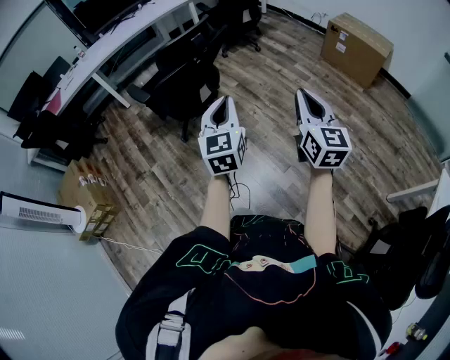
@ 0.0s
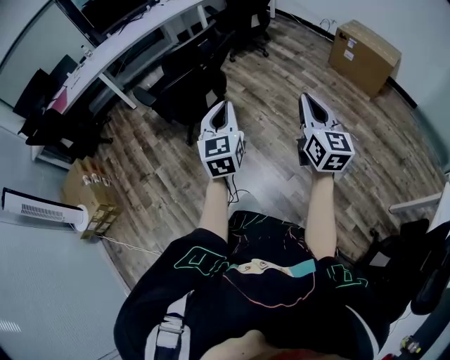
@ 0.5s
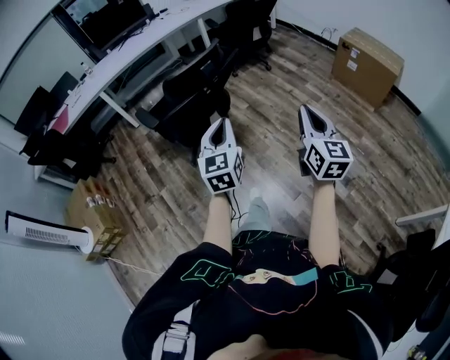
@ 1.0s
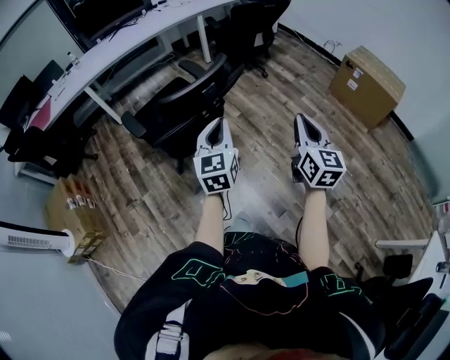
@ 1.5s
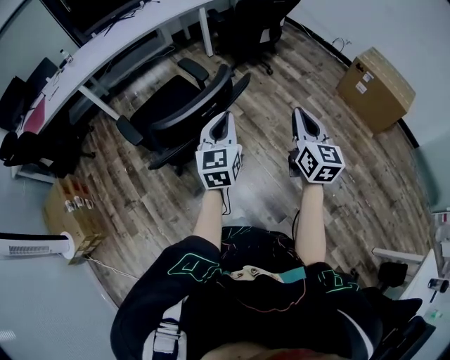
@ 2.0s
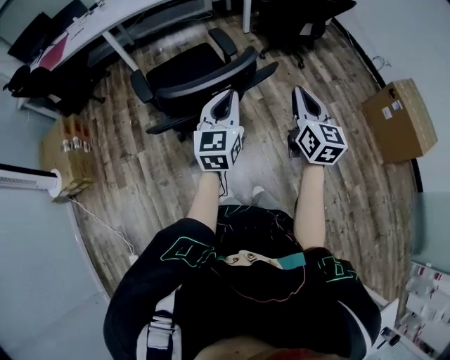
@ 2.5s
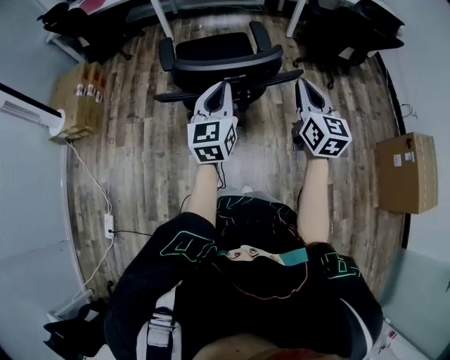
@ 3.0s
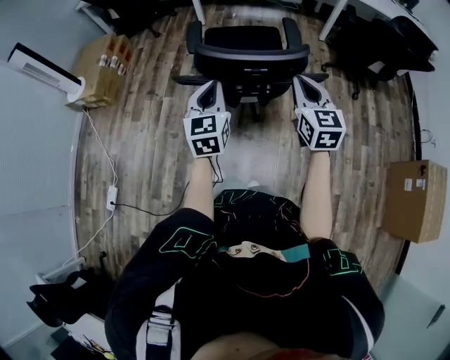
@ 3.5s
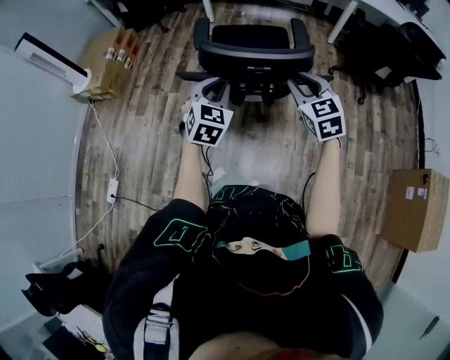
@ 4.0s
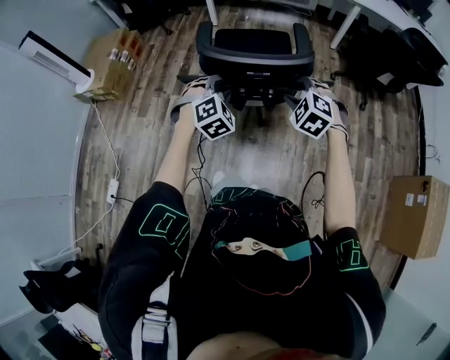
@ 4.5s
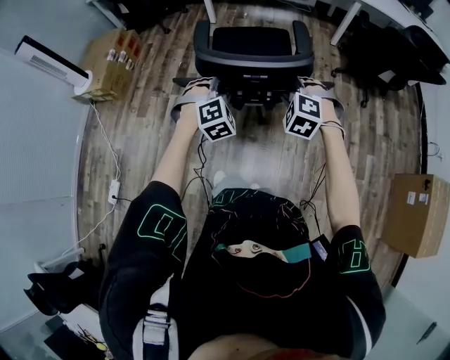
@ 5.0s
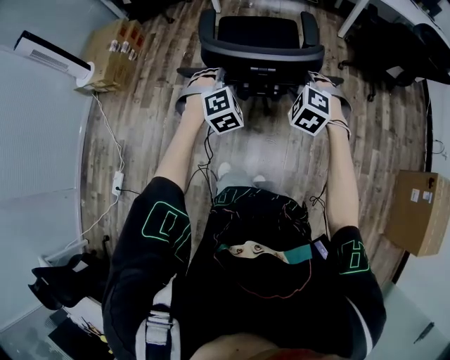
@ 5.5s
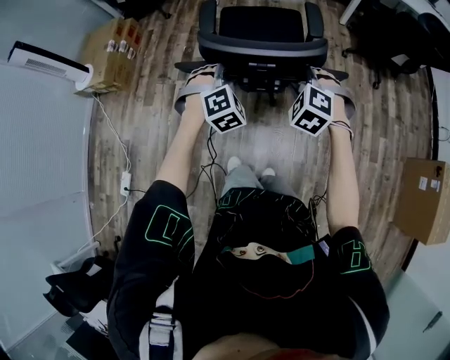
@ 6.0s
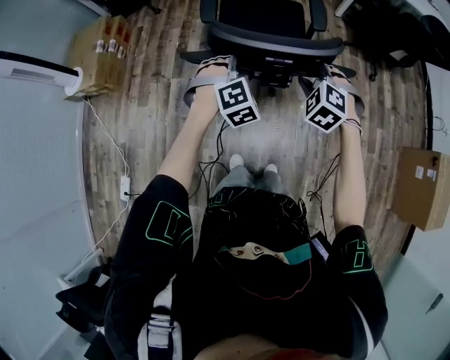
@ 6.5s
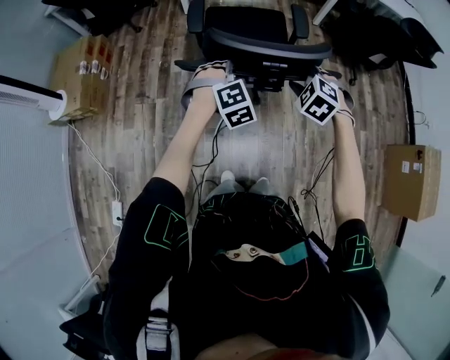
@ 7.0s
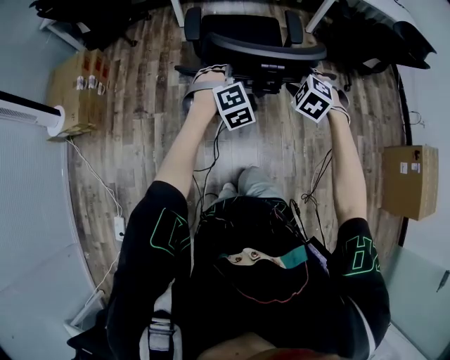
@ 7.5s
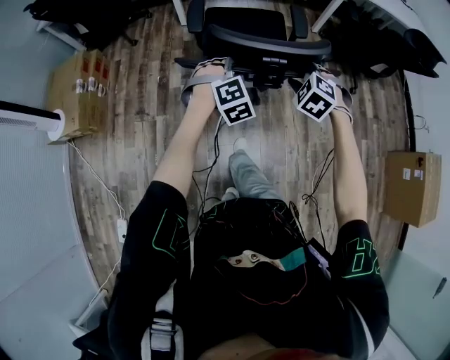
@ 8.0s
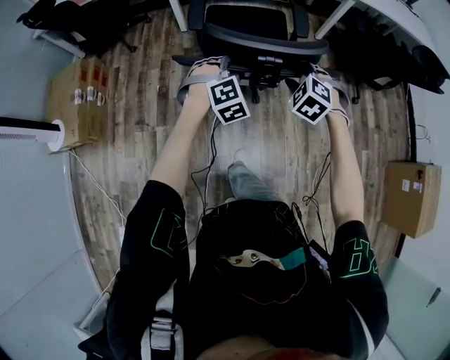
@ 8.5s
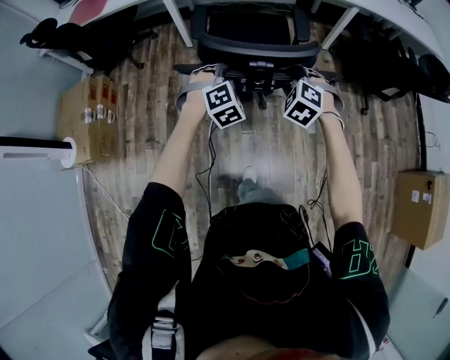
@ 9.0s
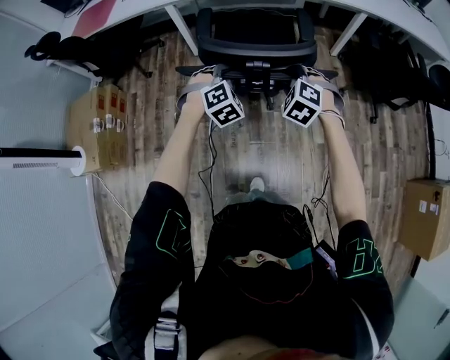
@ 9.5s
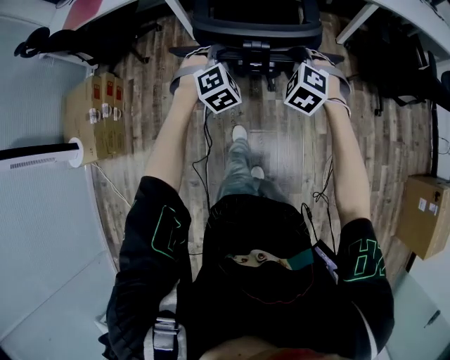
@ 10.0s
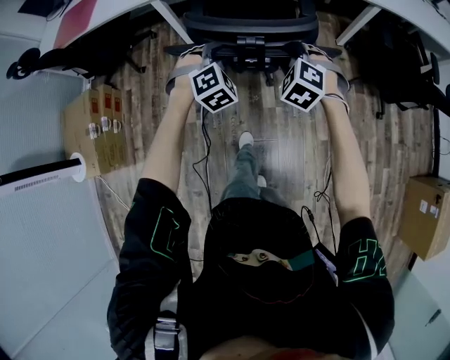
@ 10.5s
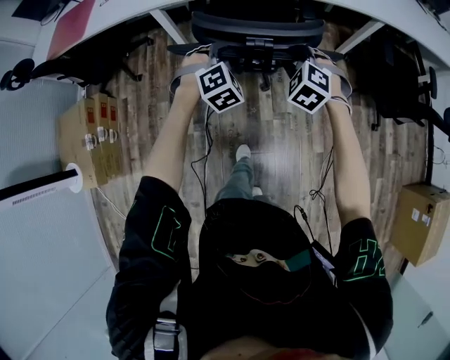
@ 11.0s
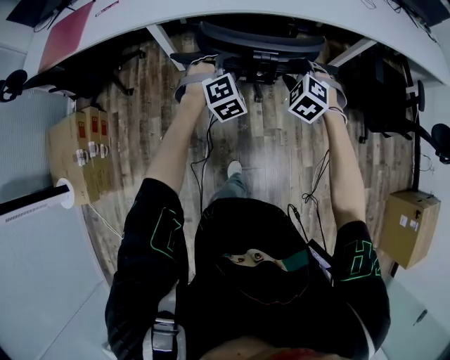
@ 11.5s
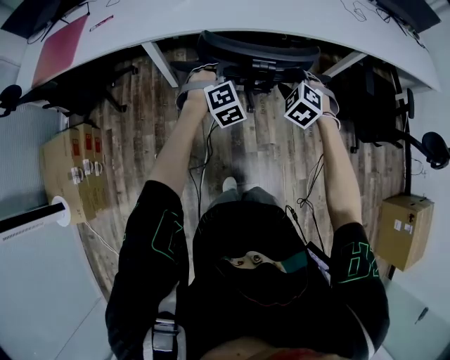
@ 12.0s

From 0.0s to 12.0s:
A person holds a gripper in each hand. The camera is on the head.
From 0.0s to 2.0s: The two grippers go roughly 40 cm forward.
From 2.0s to 4.0s: The left gripper moves about 15 cm, and swivels about 50 degrees. Meanwhile the right gripper changes place by approximately 25 cm, rotates about 70 degrees, and opens.
From 4.0s to 6.0s: The left gripper goes some 10 cm downward and forward, and twists approximately 40 degrees clockwise, seen from behind; the right gripper goes about 10 cm downward and to the left, and swivels about 50 degrees.
From 6.0s to 8.0s: The two grippers go about 20 cm forward.
From 8.0s to 10.0s: Both grippers move forward, approximately 30 cm.
From 10.0s to 12.0s: Both grippers travel together forward, some 30 cm.

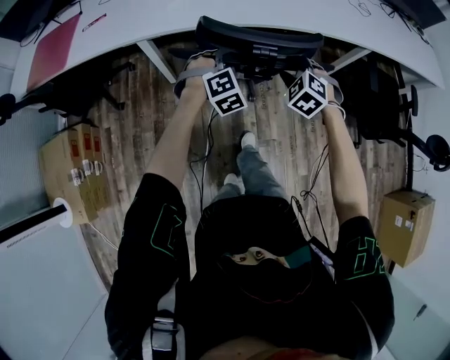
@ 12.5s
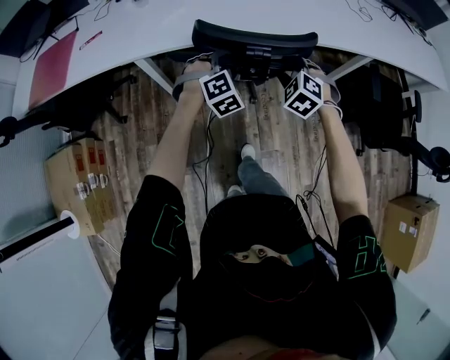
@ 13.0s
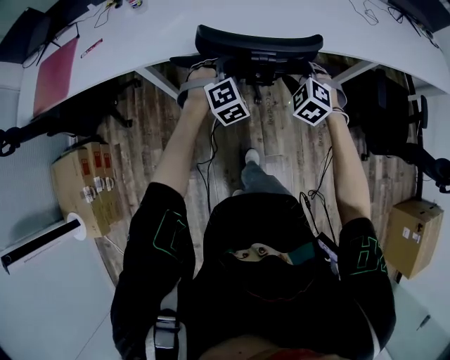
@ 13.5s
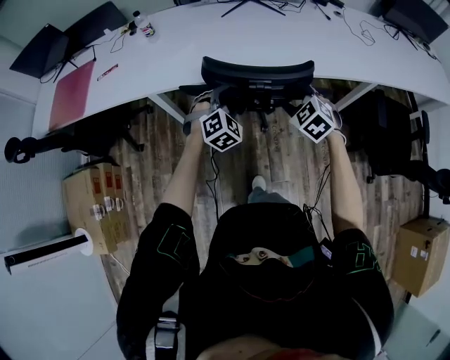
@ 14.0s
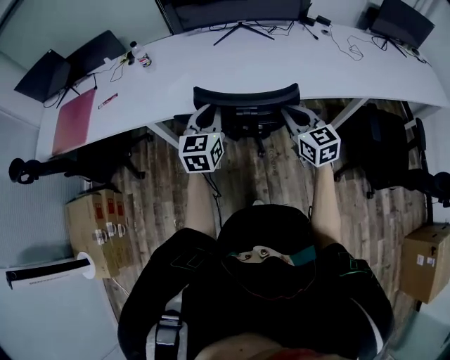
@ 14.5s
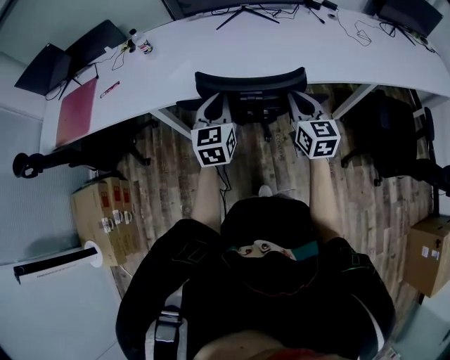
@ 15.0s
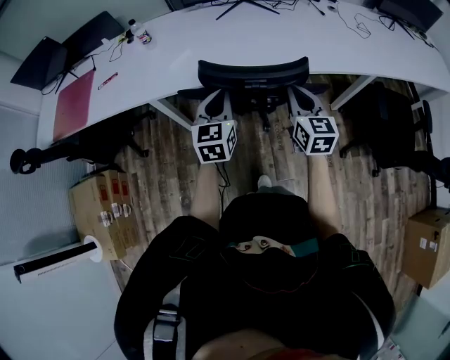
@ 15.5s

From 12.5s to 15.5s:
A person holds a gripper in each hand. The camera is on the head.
From 12.5s to 14.0s: The two grippers go about 10 cm forward.
From 14.0s to 15.5s: Both grippers move upward, roughly 10 cm. The left gripper rolls counterclockwise, seen from behind, by roughly 50 degrees, and closes its fingers; the right gripper angles its fingers upward, by approximately 30 degrees, and closes its fingers.

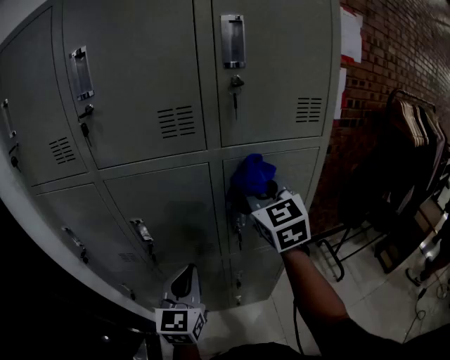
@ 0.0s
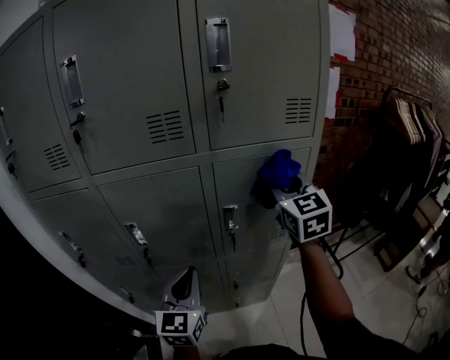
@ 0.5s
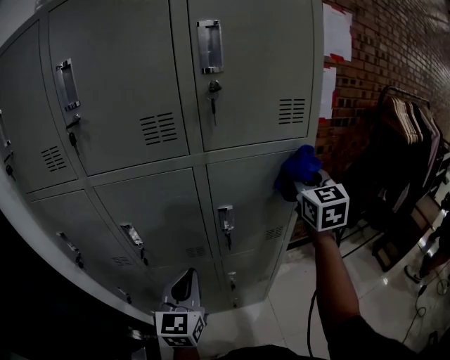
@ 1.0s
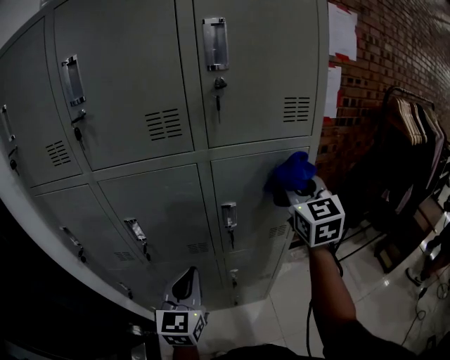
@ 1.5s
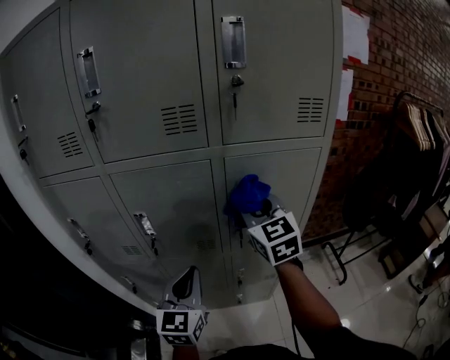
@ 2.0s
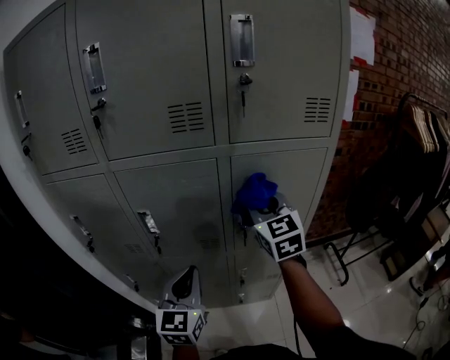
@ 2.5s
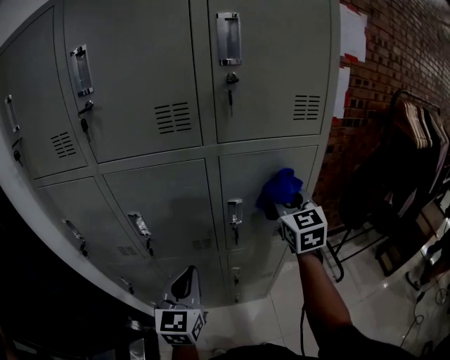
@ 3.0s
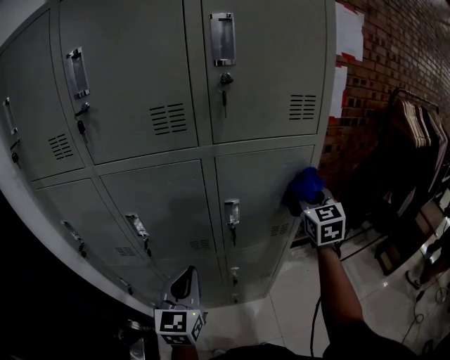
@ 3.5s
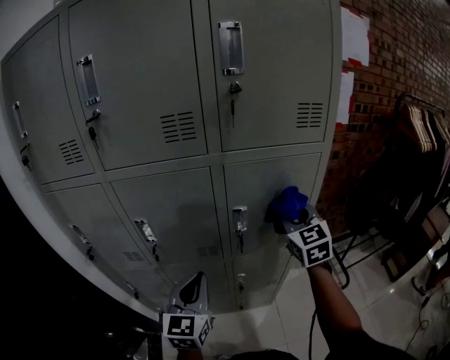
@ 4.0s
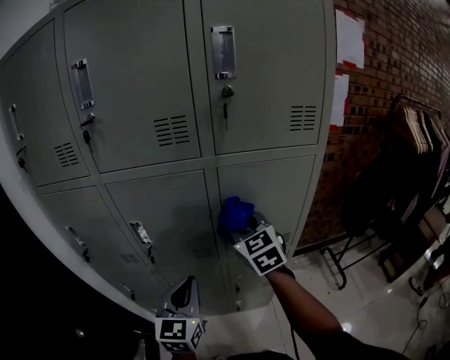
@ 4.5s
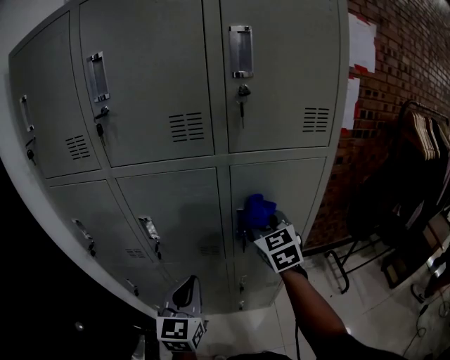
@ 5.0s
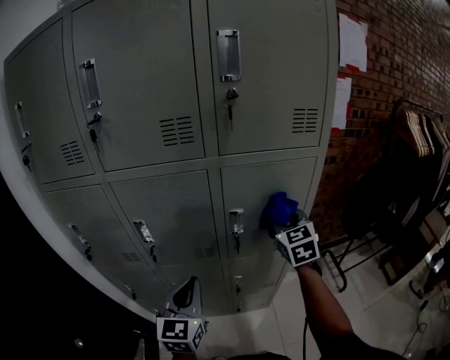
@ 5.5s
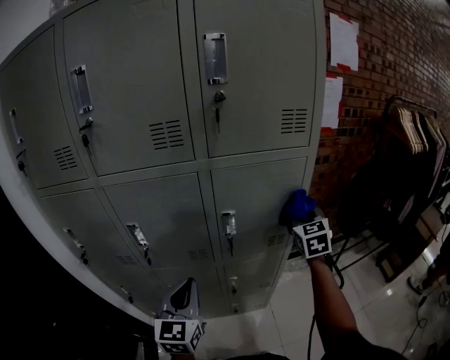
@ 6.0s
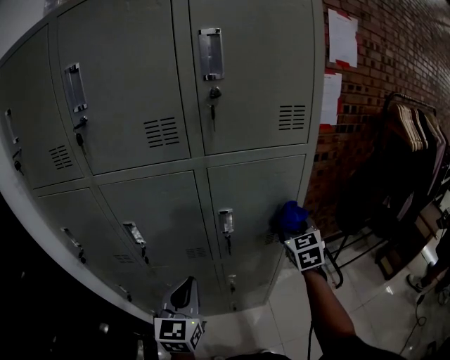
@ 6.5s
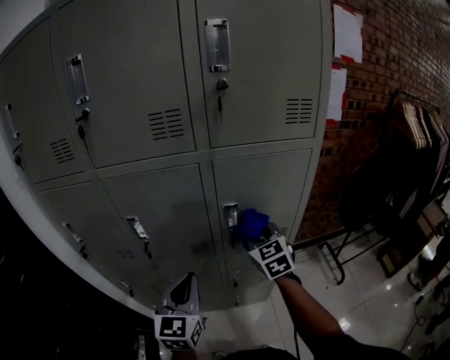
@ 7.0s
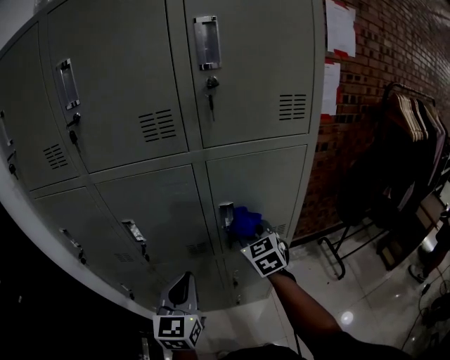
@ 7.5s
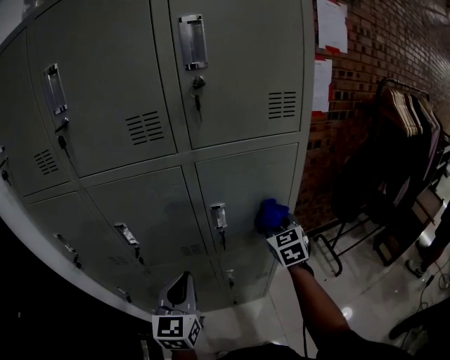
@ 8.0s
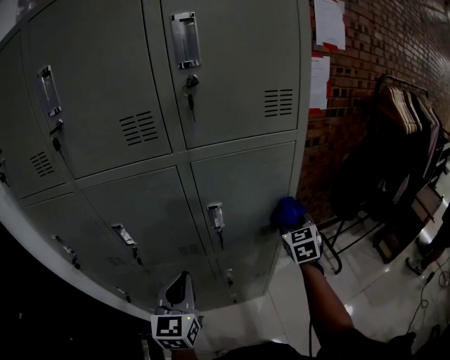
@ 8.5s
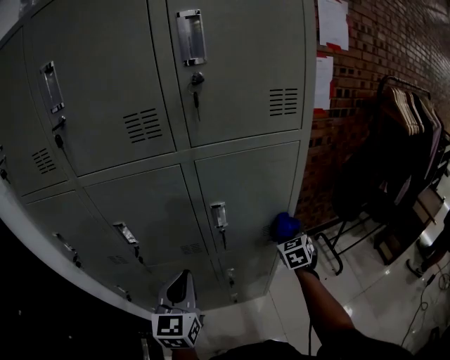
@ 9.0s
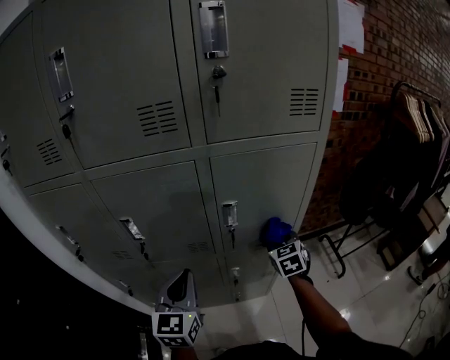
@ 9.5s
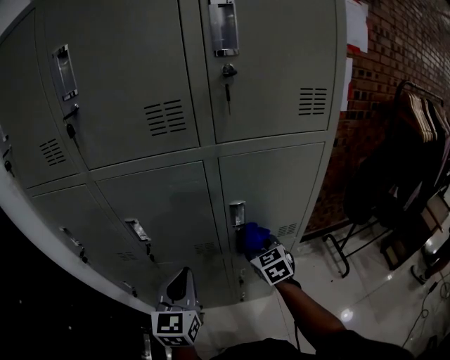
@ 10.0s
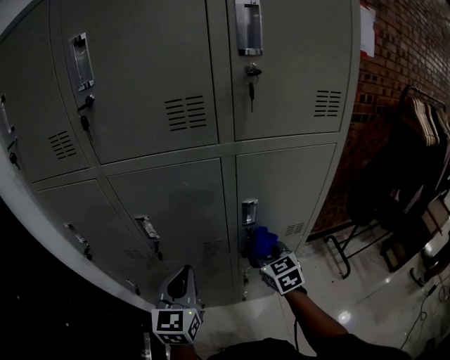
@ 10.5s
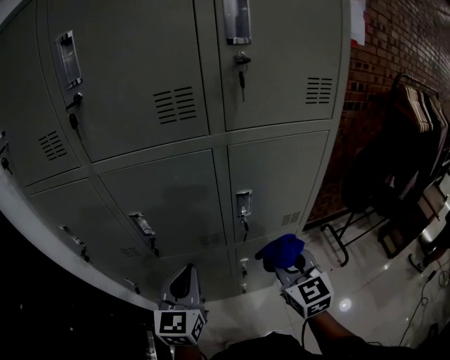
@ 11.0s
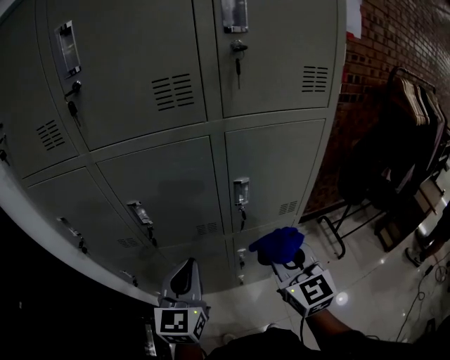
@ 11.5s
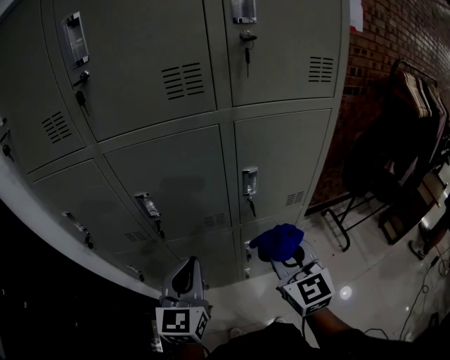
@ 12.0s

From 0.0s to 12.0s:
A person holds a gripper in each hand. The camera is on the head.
From 0.0s to 2.0s: The right gripper shifts about 5 cm downward, and goes to the right and returns, approximately 20 cm each way.
From 2.0s to 4.0s: The right gripper shifts approximately 10 cm to the right.
From 4.0s to 6.0s: The right gripper goes some 10 cm to the right.
From 6.0s to 8.0s: The right gripper travels downward by approximately 5 cm, and moves about 15 cm to the left and comes back.
From 8.0s to 10.0s: The right gripper is displaced to the left and downward by approximately 15 cm.
From 10.0s to 12.0s: The left gripper moves some 5 cm. The right gripper goes about 20 cm backward and upward, and changes its angle by some 20 degrees.
